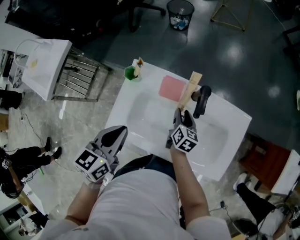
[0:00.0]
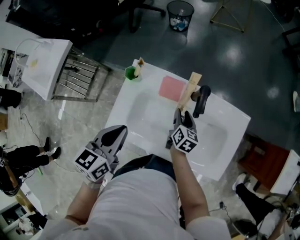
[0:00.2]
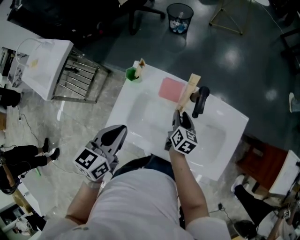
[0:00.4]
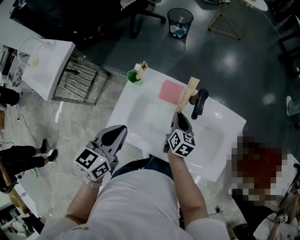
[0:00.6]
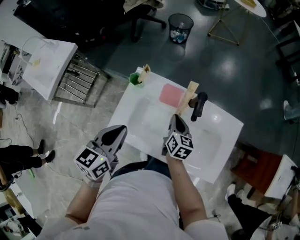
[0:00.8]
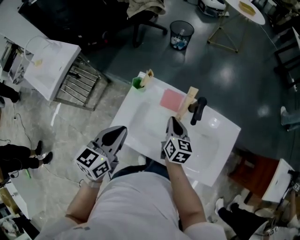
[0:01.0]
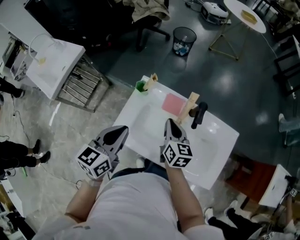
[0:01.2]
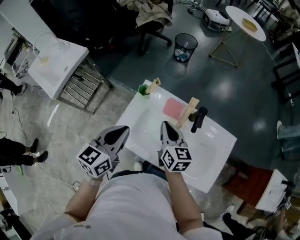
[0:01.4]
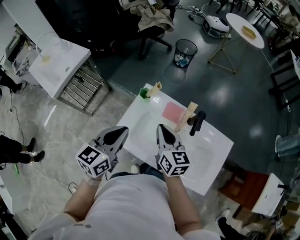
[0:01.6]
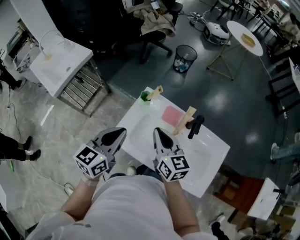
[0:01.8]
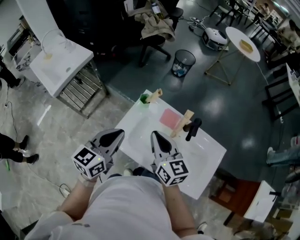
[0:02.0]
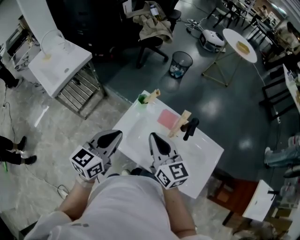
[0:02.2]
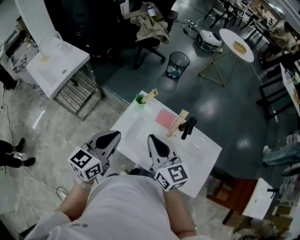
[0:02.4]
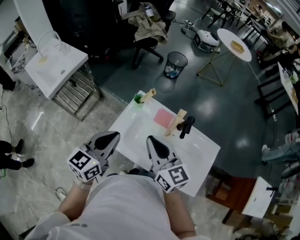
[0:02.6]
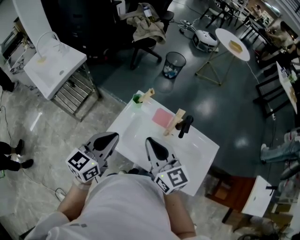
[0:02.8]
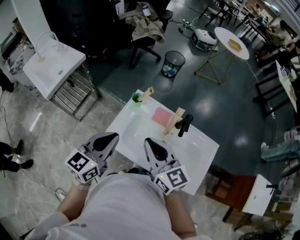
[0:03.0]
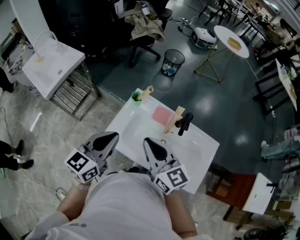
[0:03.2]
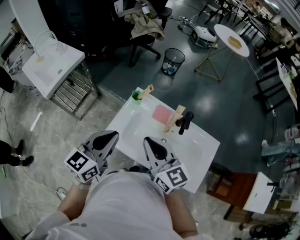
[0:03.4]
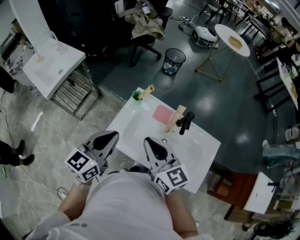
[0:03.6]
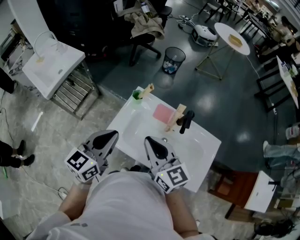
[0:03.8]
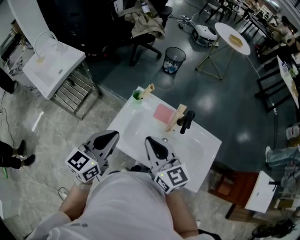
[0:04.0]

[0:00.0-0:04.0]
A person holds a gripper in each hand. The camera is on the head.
0:00.0 to 0:01.4: The left gripper shifts about 5 cm upward. The right gripper goes approximately 25 cm upward and to the left, swivels some 30 degrees, and closes.
0:01.4 to 0:02.6: The right gripper shifts approximately 15 cm upward, backward and to the left, and swivels about 20 degrees; the left gripper changes place by about 5 cm.
0:02.6 to 0:04.0: There are only small adjustments of the grippers.

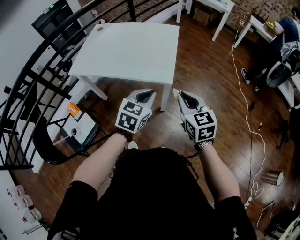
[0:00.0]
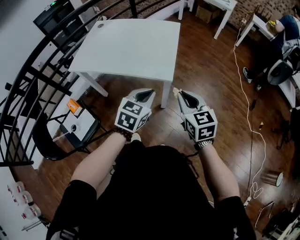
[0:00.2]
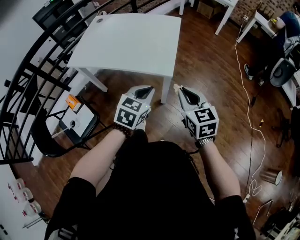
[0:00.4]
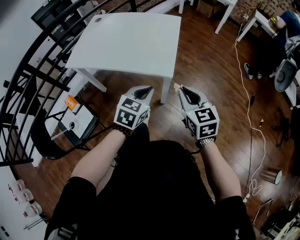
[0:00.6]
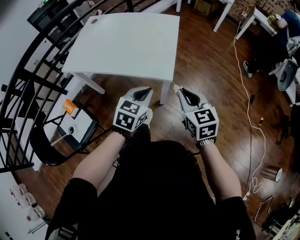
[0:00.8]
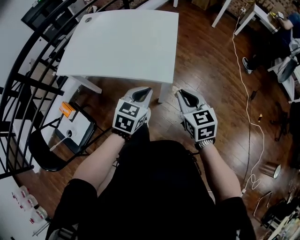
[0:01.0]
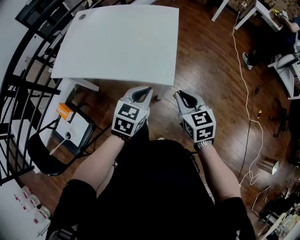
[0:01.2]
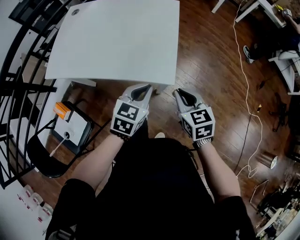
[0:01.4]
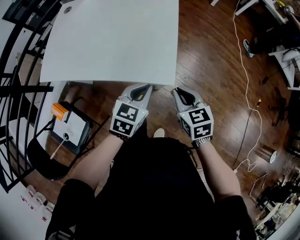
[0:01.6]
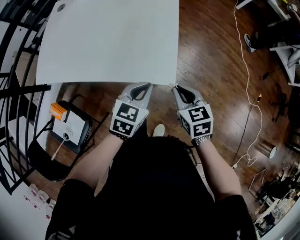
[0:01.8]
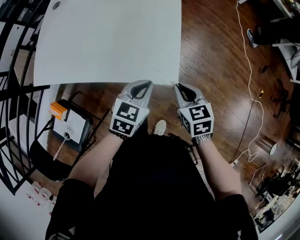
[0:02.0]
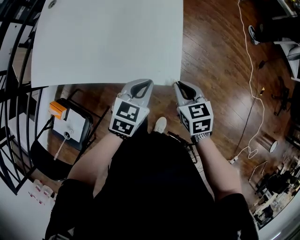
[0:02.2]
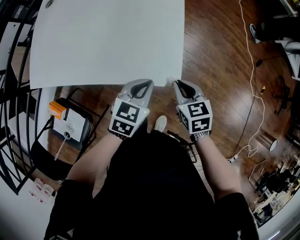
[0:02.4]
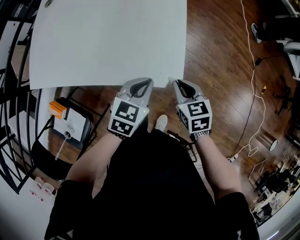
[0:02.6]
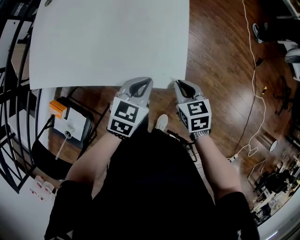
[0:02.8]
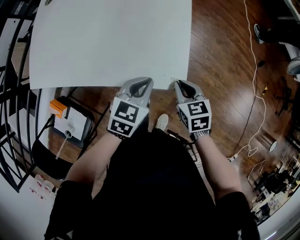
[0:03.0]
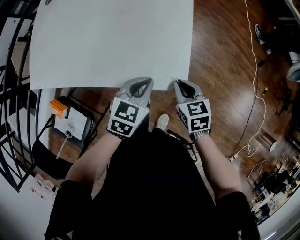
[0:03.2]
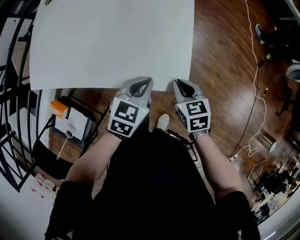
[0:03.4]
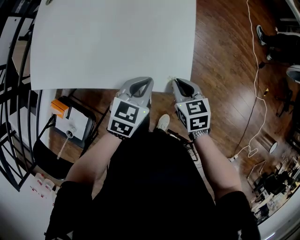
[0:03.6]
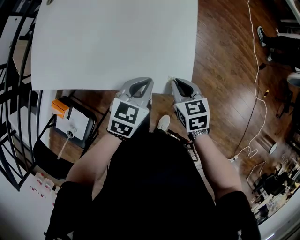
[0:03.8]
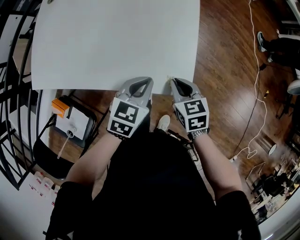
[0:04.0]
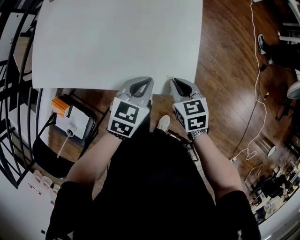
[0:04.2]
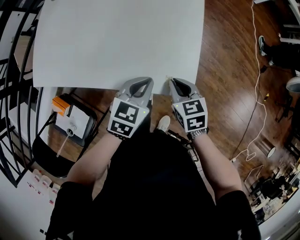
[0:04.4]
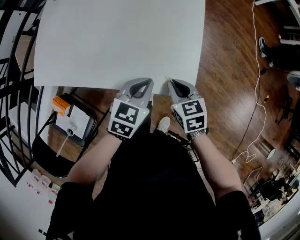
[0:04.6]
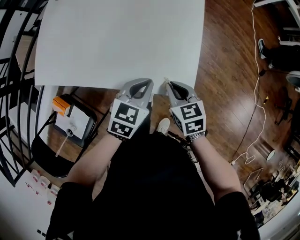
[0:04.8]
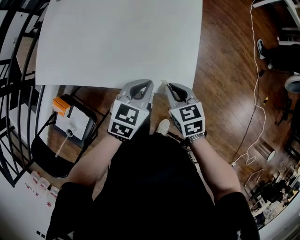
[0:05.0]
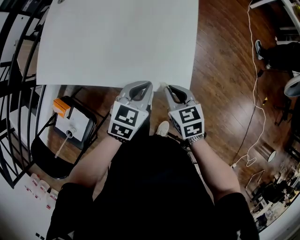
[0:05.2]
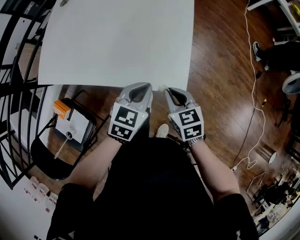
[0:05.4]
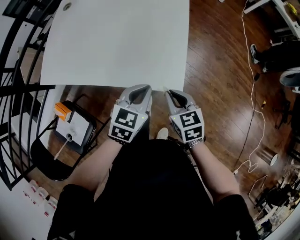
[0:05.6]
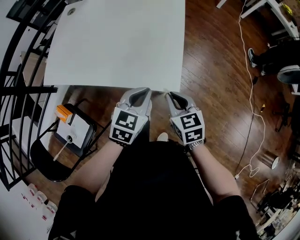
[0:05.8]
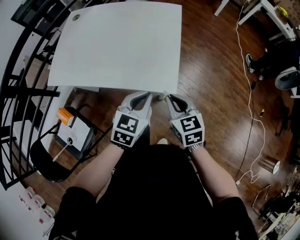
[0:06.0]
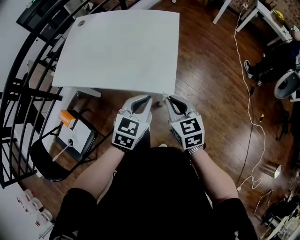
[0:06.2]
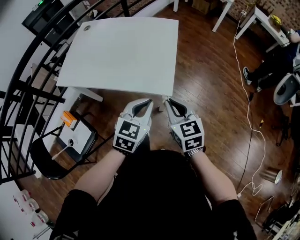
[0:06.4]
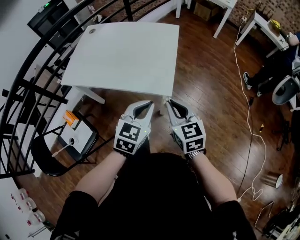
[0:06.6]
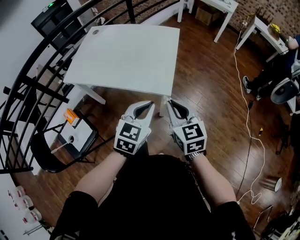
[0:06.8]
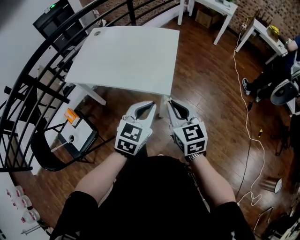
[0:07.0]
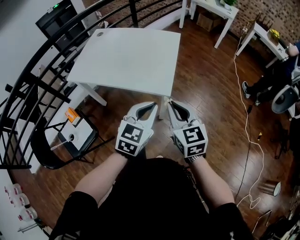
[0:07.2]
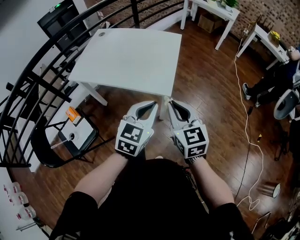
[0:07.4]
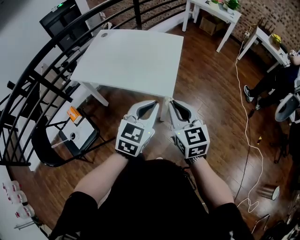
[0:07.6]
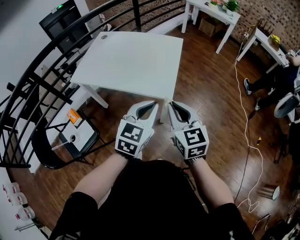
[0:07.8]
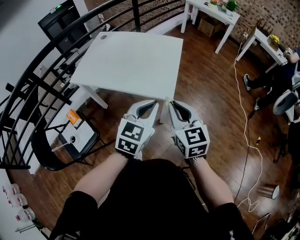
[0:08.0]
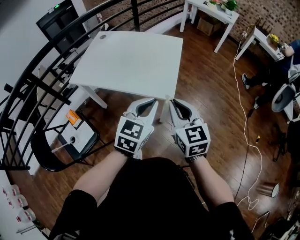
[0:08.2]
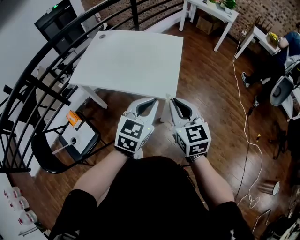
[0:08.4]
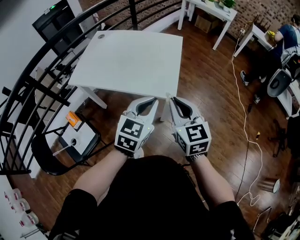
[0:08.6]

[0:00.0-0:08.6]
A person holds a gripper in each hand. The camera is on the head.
0:00.0 to 0:01.4: Both grippers travel together forward and downward, approximately 15 cm.
0:01.4 to 0:02.8: Both grippers travel together downward and forward, some 10 cm.
0:02.8 to 0:04.4: The right gripper travels to the left by roughly 5 cm.
0:04.4 to 0:05.8: Both grippers move upward and backward, roughly 10 cm.
0:05.8 to 0:07.2: The left gripper travels backward, upward and to the right by some 20 cm. The right gripper shifts approximately 20 cm upward and backward, and turns by about 20 degrees.
0:07.2 to 0:08.6: The right gripper moves approximately 5 cm. The left gripper ends up approximately 5 cm from where it was.

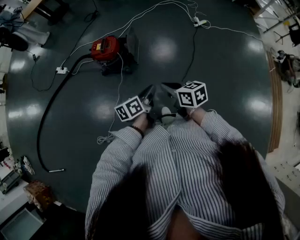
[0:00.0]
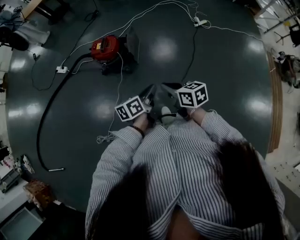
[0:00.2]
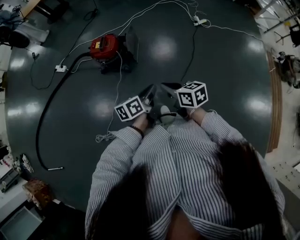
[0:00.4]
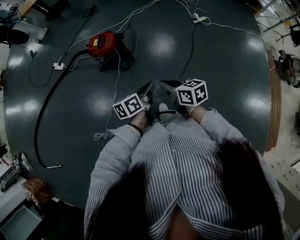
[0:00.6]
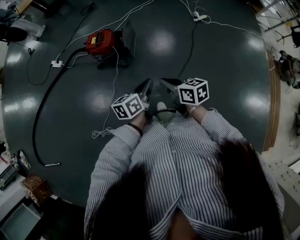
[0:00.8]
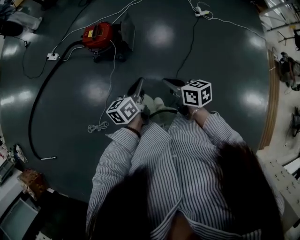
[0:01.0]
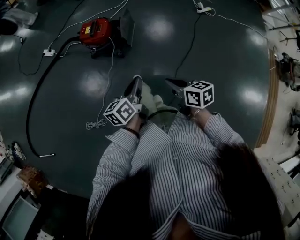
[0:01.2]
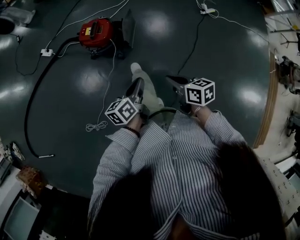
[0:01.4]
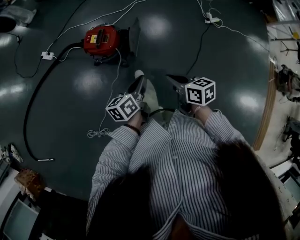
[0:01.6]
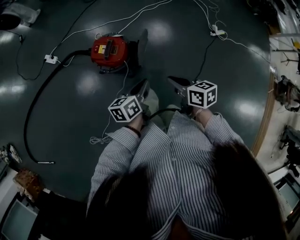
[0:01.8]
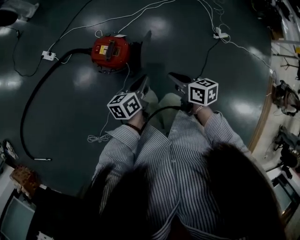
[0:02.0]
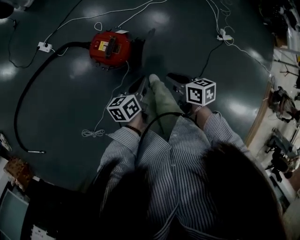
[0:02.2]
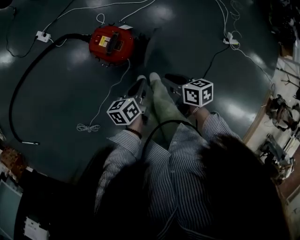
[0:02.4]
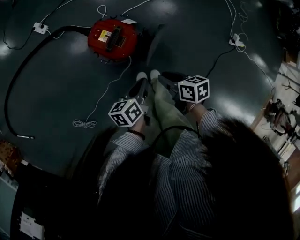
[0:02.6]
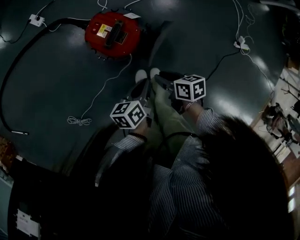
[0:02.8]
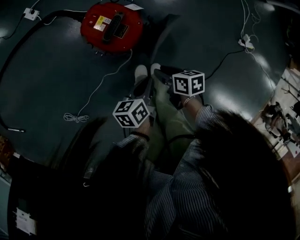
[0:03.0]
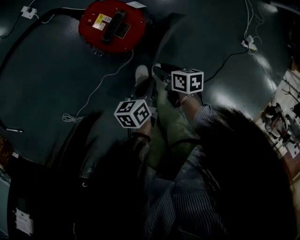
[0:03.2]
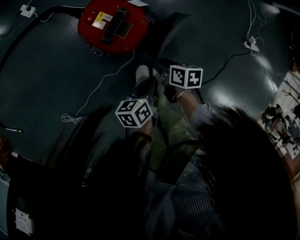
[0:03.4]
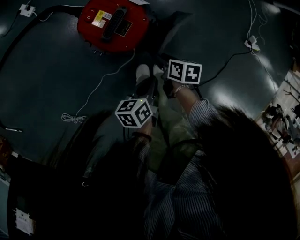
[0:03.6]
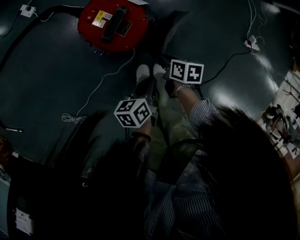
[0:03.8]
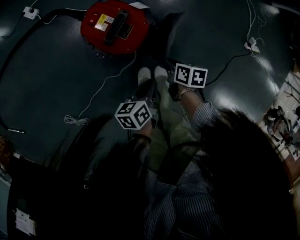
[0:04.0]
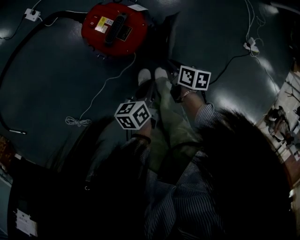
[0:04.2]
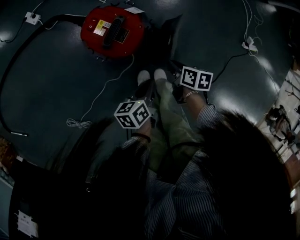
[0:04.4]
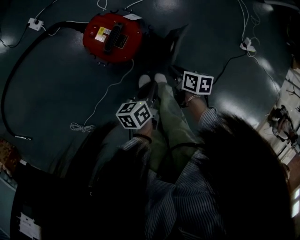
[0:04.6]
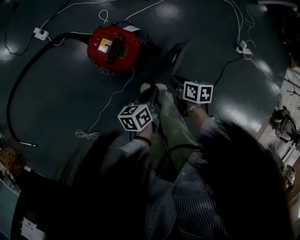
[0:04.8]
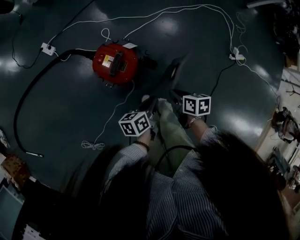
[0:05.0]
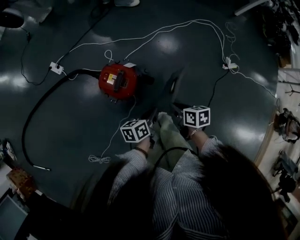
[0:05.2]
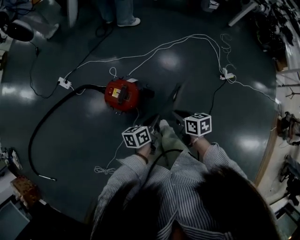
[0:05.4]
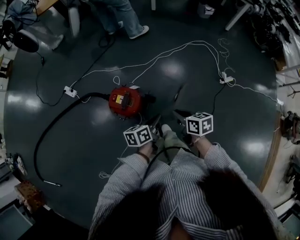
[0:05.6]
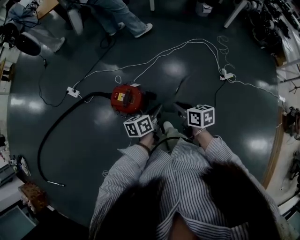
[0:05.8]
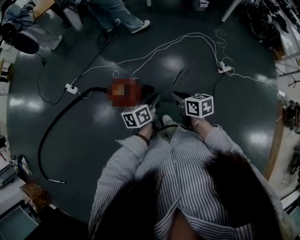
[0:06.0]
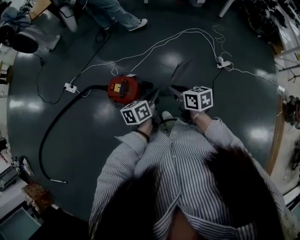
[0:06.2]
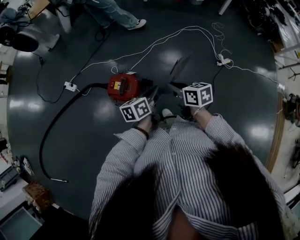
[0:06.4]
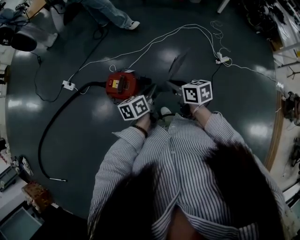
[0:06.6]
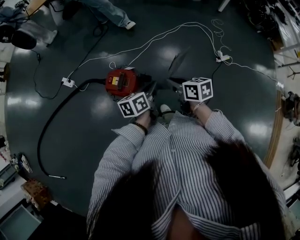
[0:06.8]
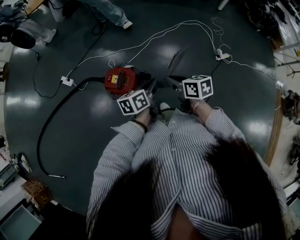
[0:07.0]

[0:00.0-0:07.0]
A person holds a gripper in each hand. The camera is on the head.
0:00.0 to 0:01.4: The right gripper is displaced forward and downward by roughly 10 cm. The left gripper travels forward by roughly 10 cm.
0:01.4 to 0:02.8: The two grippers go approximately 35 cm forward and downward. The right gripper rotates some 30 degrees, and opens up.
0:02.8 to 0:04.2: The two grippers go roughly 10 cm downward.
0:04.2 to 0:05.6: Both grippers travel together upward, roughly 30 cm. The right gripper swivels approximately 20 degrees. Meanwhile the left gripper rotates some 20 degrees.
0:05.6 to 0:07.0: The left gripper shifts by approximately 5 cm.

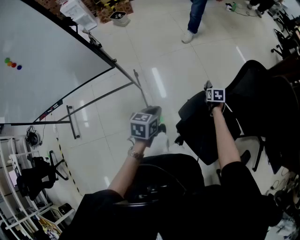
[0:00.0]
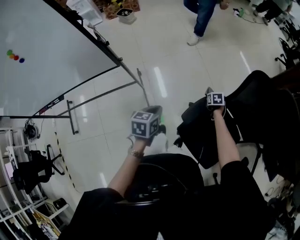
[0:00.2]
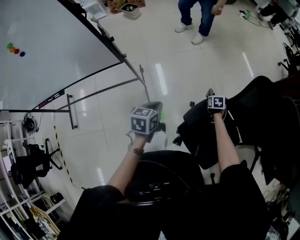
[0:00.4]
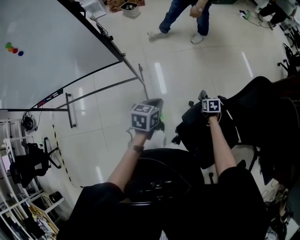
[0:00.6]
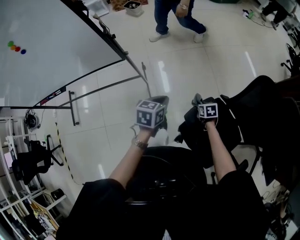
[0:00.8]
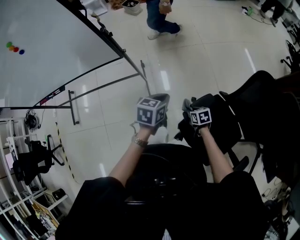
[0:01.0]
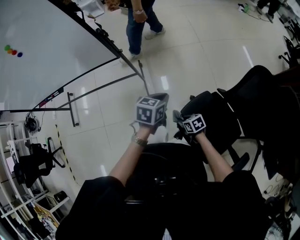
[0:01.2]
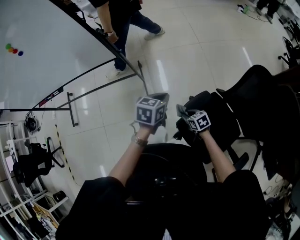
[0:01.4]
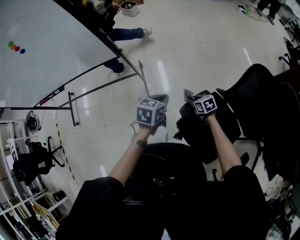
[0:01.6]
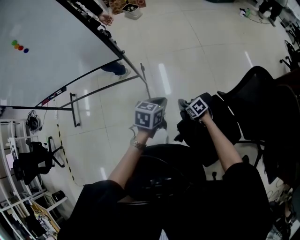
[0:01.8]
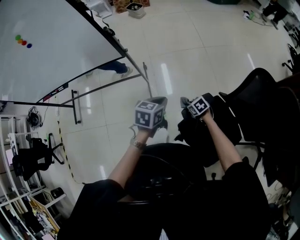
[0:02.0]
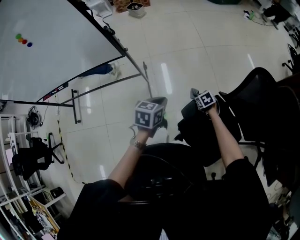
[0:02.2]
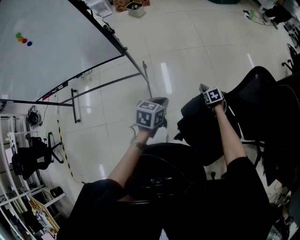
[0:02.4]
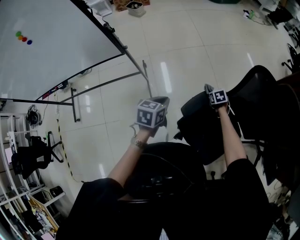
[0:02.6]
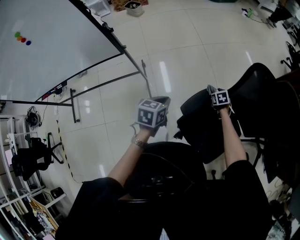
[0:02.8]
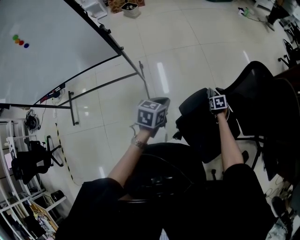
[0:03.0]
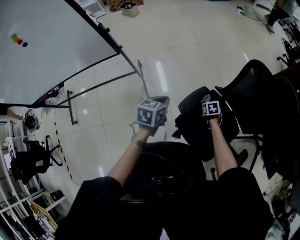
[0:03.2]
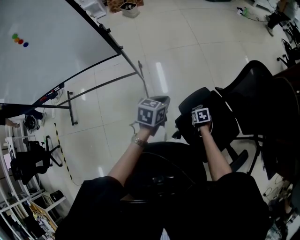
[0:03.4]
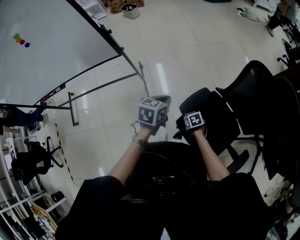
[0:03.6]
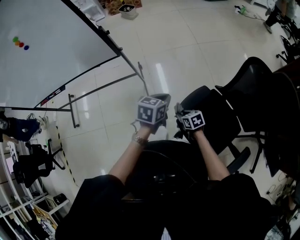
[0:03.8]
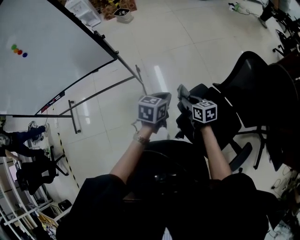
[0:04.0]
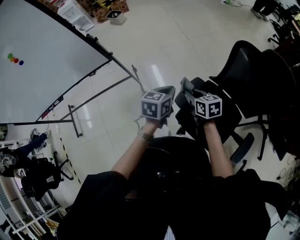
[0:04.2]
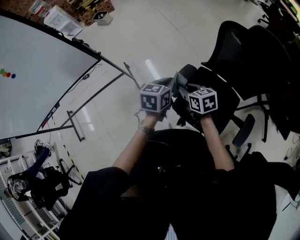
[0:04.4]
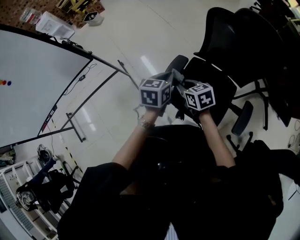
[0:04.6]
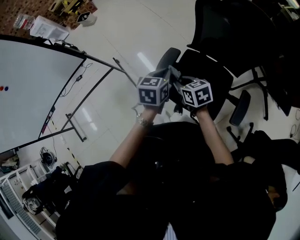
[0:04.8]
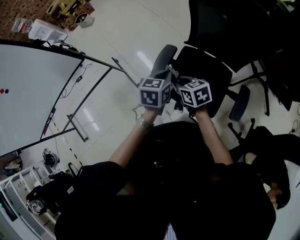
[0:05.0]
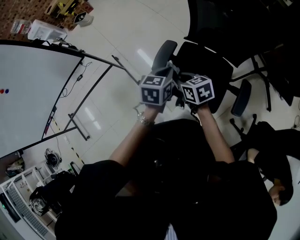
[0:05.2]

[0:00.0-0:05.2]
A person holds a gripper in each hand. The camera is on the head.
0:00.0 to 0:01.8: The right gripper ends up approximately 20 cm from where it was, and swivels about 50 degrees.
0:01.8 to 0:03.4: The right gripper swivels roughly 30 degrees.
0:03.4 to 0:05.2: The right gripper goes roughly 25 cm upward and backward, and points its fingers roughly 30 degrees further upward, while the left gripper is displaced to the right and backward by approximately 20 cm, and swivels some 20 degrees.
